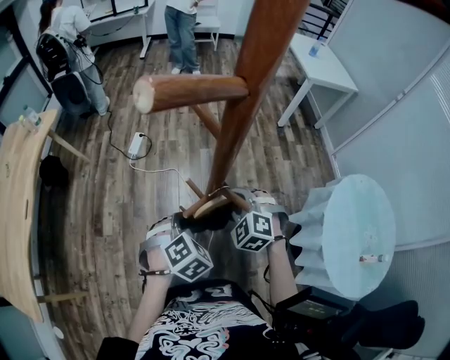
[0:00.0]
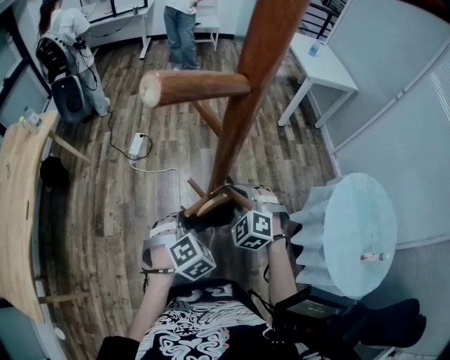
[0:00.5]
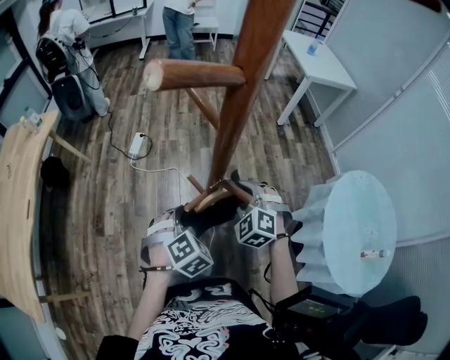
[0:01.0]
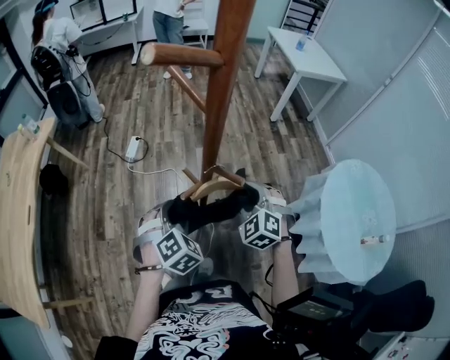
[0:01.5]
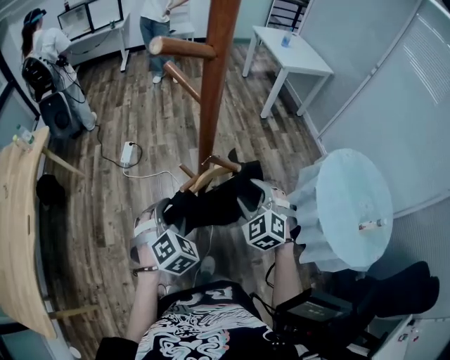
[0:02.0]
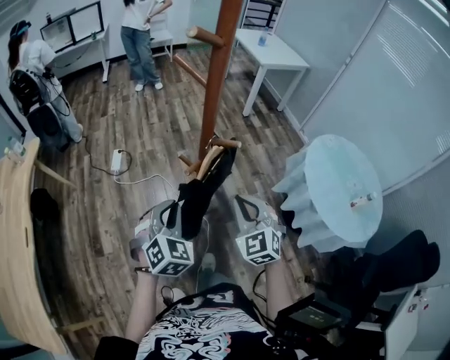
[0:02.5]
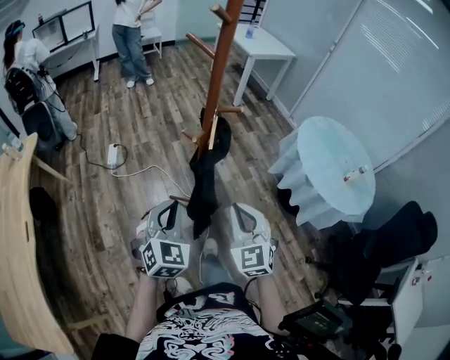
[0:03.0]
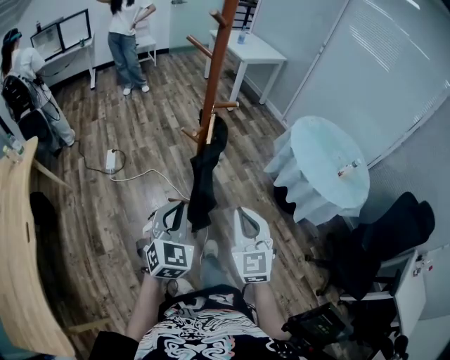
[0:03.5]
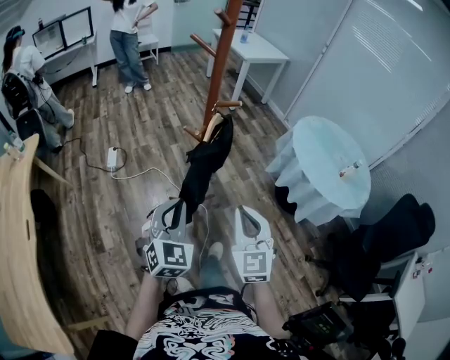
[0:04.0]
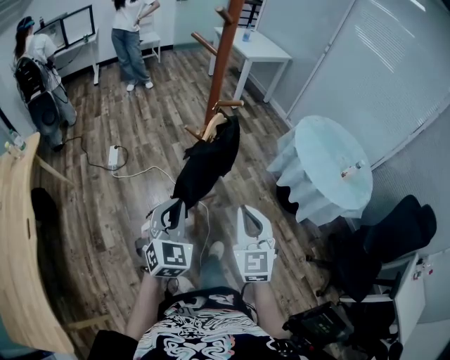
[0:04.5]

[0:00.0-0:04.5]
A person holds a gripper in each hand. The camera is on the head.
0:00.0 to 0:02.0: The right gripper goes some 10 cm backward, turns by some 20 degrees, and opens; the left gripper ends up some 5 cm from where it was, and opens.
0:02.0 to 0:04.5: The right gripper heads backward, covering approximately 30 cm, turns by roughly 40 degrees, and closes up. The left gripper heads backward, covering some 20 cm, changes its angle by approximately 40 degrees, and closes.

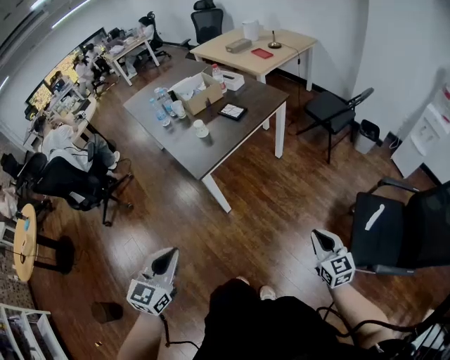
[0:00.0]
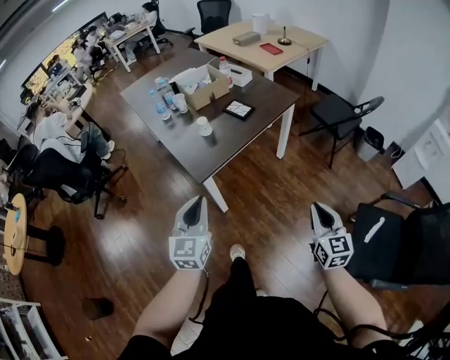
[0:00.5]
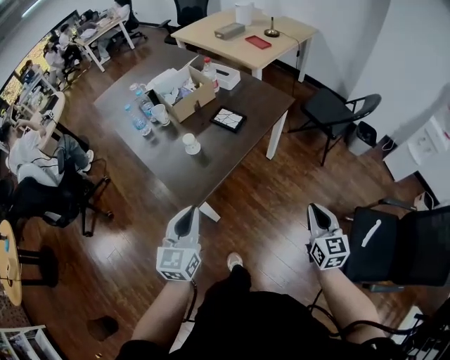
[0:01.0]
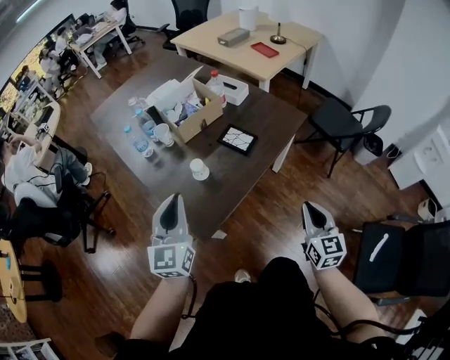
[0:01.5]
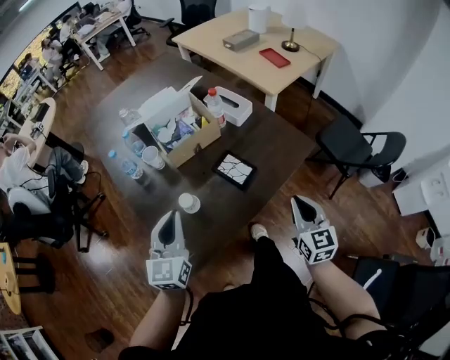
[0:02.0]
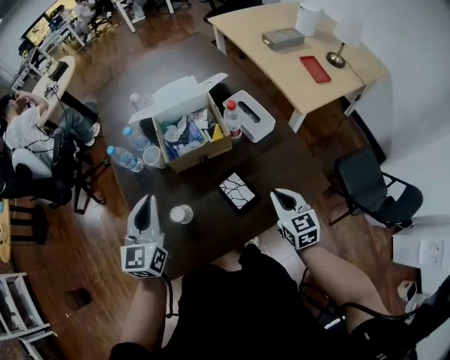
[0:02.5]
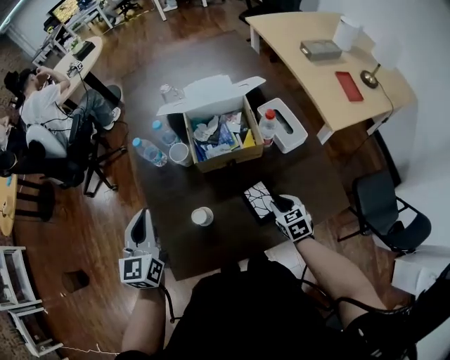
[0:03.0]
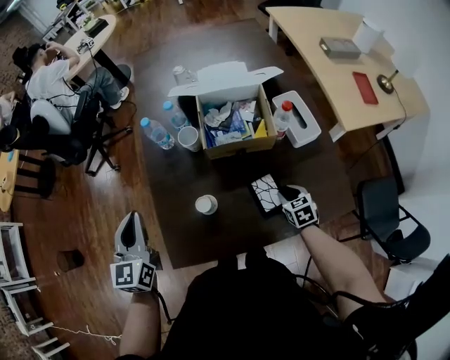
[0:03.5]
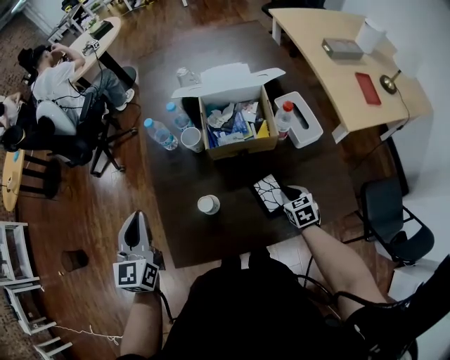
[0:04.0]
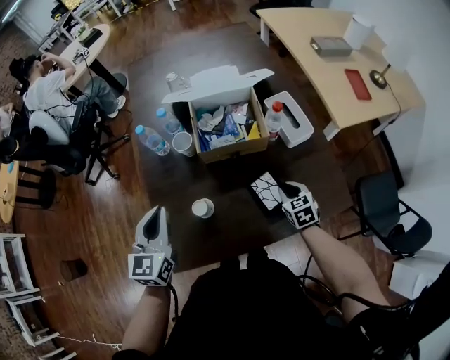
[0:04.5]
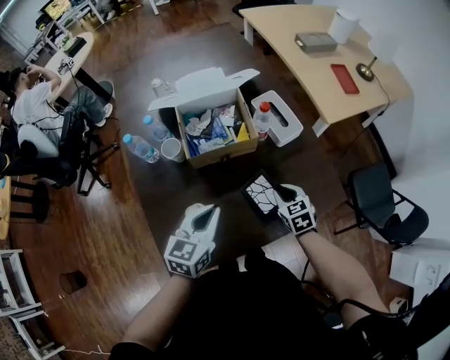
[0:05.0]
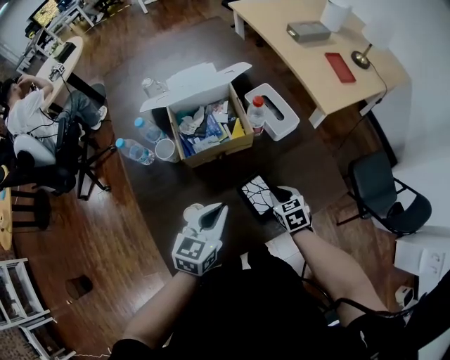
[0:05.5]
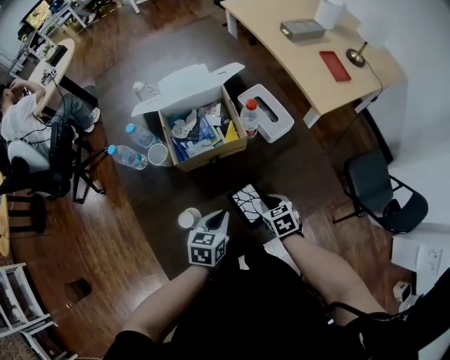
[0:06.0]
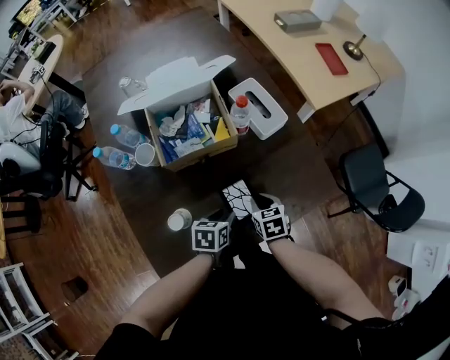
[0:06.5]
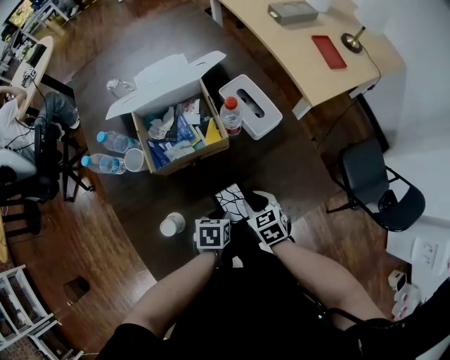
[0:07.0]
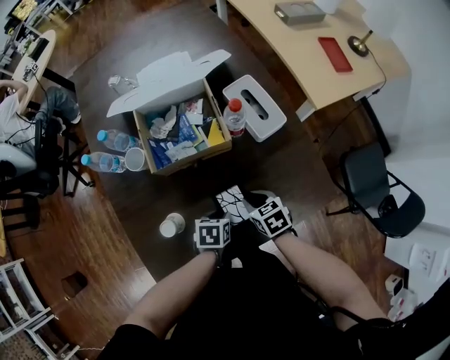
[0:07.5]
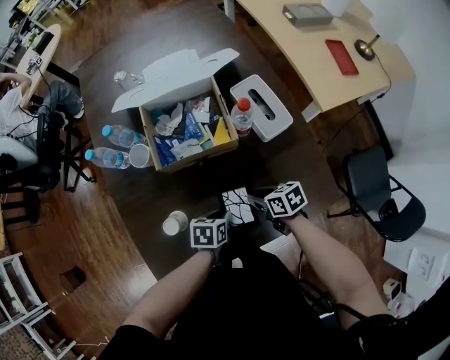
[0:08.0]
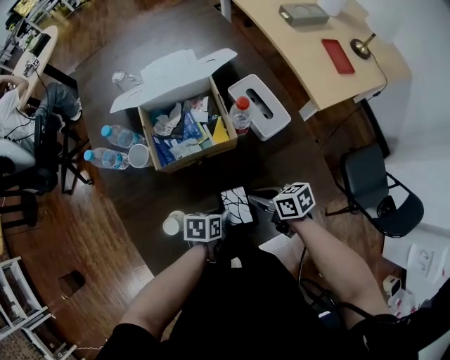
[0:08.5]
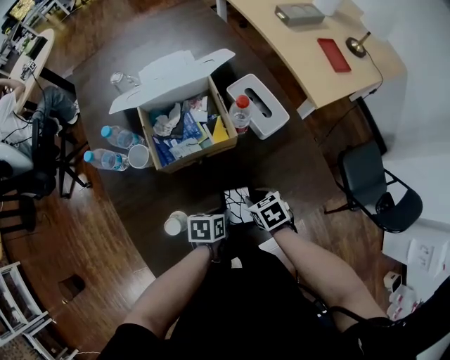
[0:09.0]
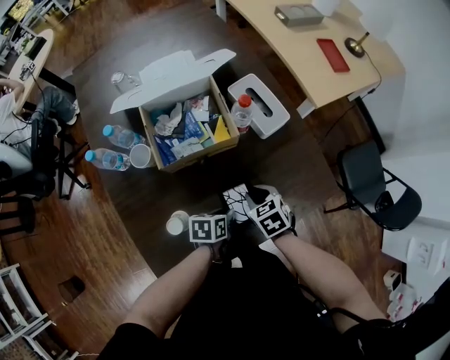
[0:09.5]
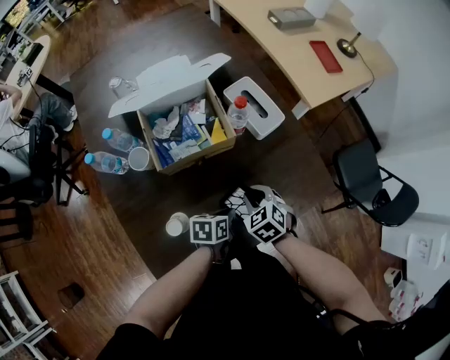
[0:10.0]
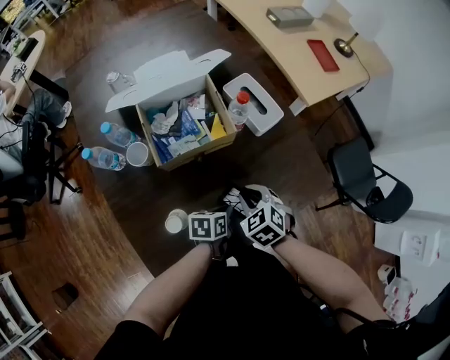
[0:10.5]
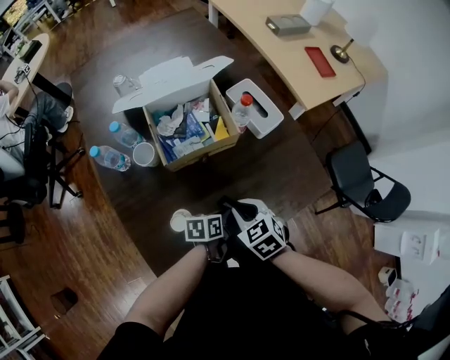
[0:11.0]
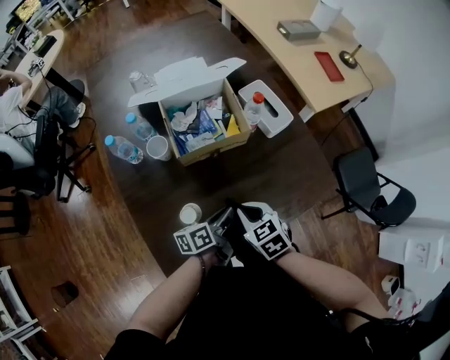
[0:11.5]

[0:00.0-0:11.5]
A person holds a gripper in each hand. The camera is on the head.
0:00.0 to 0:02.0: The pair of grippers is taken forward, about 50 cm.
0:02.0 to 0:04.0: The right gripper moves approximately 30 cm, and tilts its fingers approximately 30 degrees downward. The left gripper shifts by some 15 cm, and rotates roughly 30 degrees.
0:04.0 to 0:06.0: The left gripper changes place by about 35 cm, and rotates some 50 degrees.
0:06.0 to 0:07.5: The left gripper moves downward, some 10 cm, swivels some 30 degrees, and opens up.
0:09.5 to 0:11.5: The left gripper goes roughly 5 cm upward, and points its fingers some 30 degrees further upward. The right gripper shifts roughly 10 cm backward, upward and to the left.

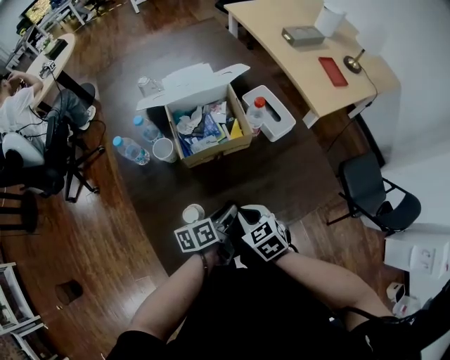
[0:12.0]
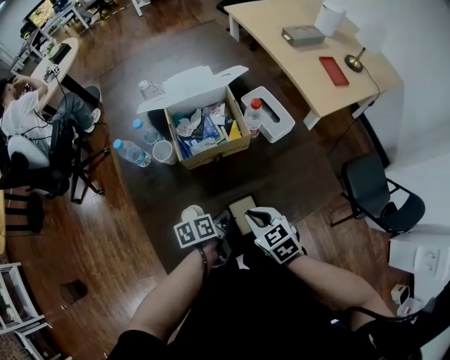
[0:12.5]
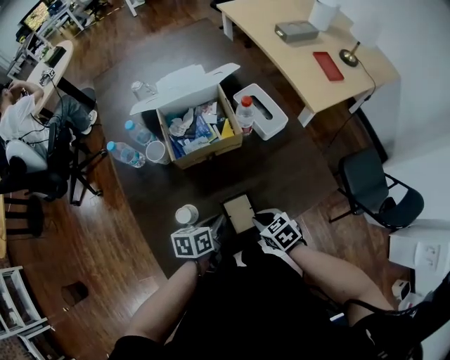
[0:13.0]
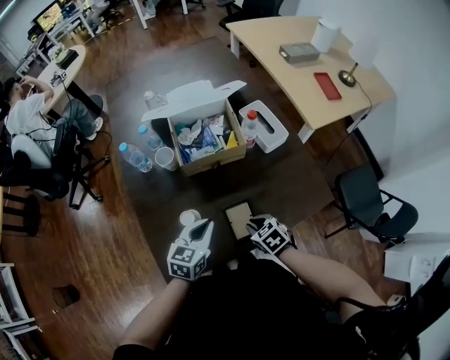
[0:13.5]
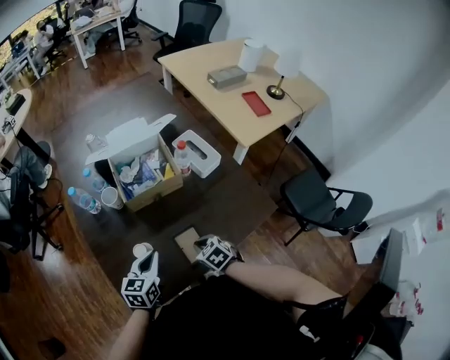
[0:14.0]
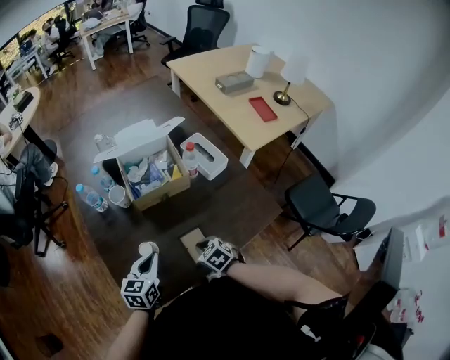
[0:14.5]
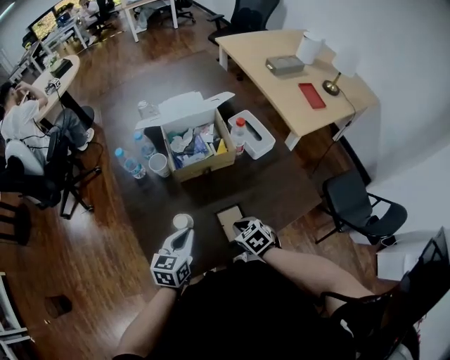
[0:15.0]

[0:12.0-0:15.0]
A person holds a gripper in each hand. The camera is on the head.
0:12.0 to 0:13.5: The right gripper goes some 10 cm downward and to the right. Meanwhile the left gripper is displaced upward by some 5 cm, rolls clockwise, seen from behind, by approximately 50 degrees, and closes up.
0:13.5 to 0:15.0: The grippers make only small movements.

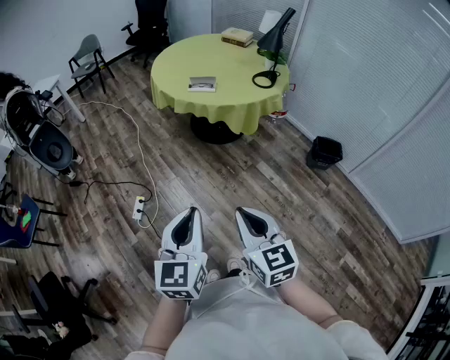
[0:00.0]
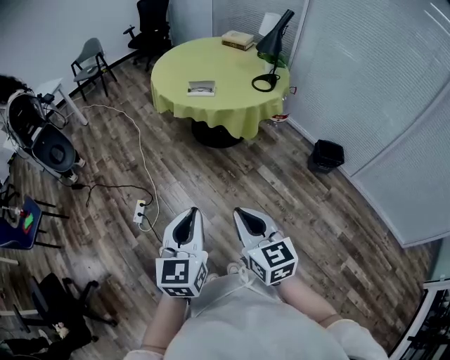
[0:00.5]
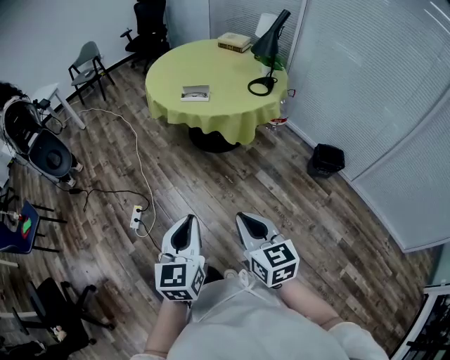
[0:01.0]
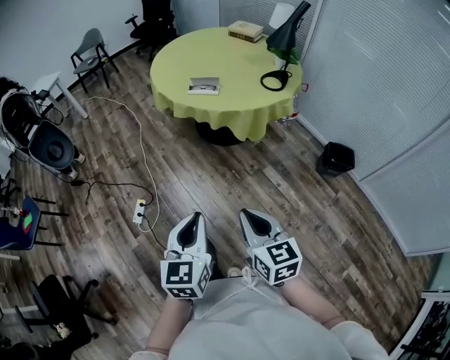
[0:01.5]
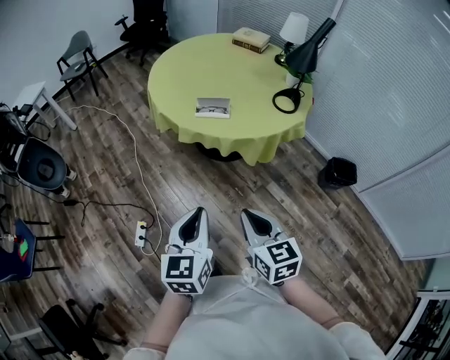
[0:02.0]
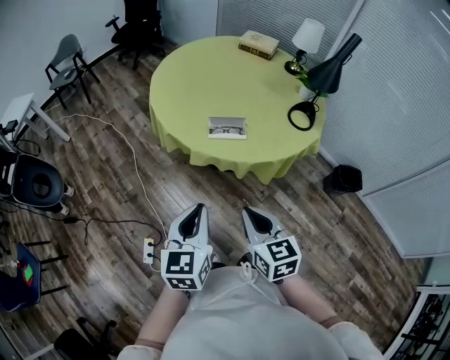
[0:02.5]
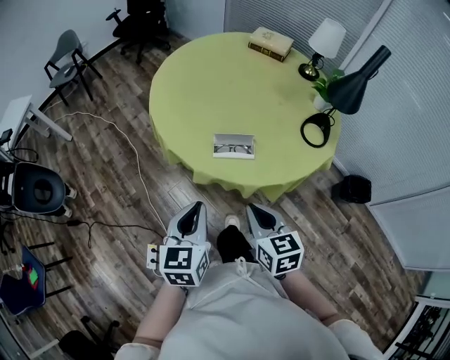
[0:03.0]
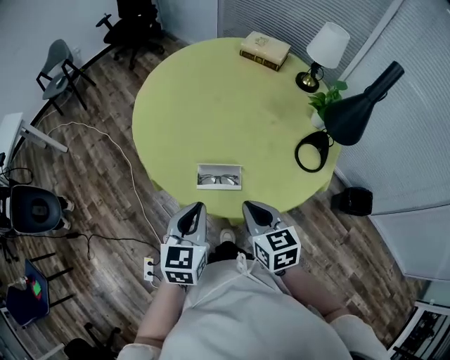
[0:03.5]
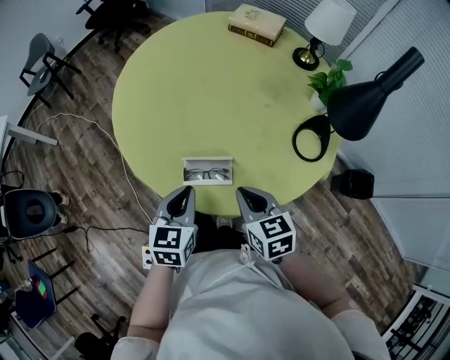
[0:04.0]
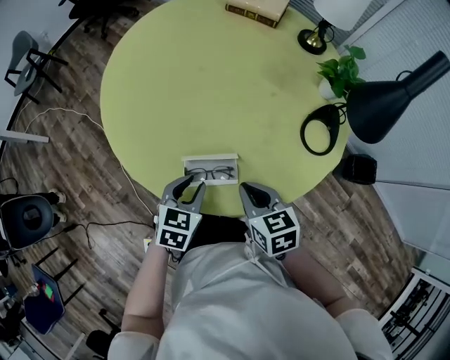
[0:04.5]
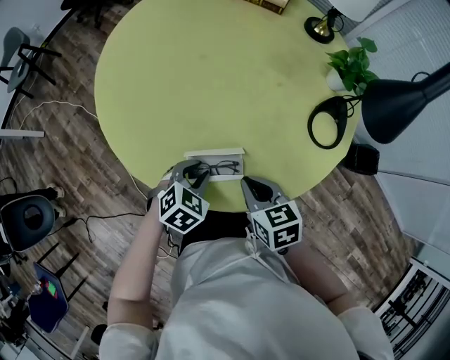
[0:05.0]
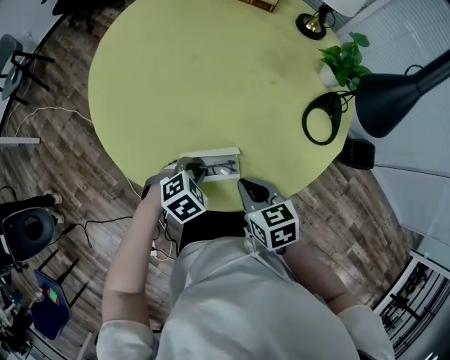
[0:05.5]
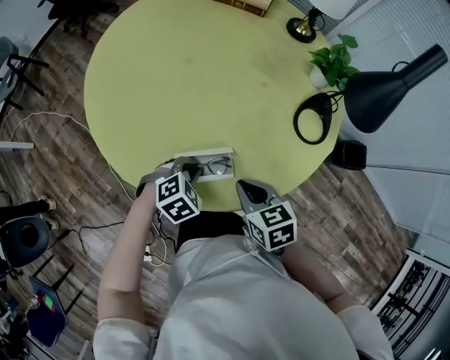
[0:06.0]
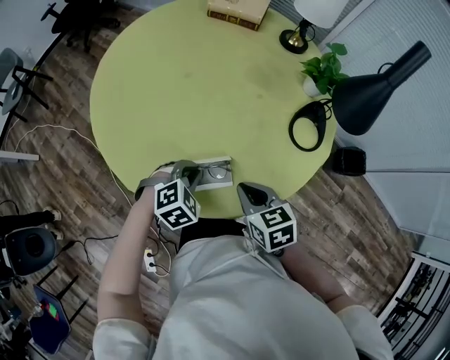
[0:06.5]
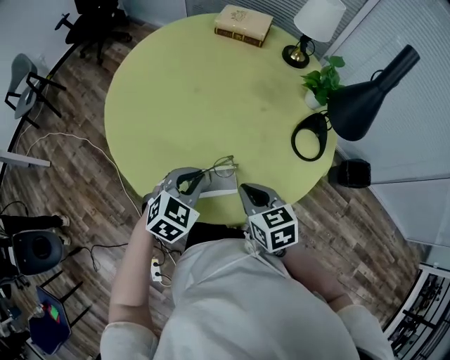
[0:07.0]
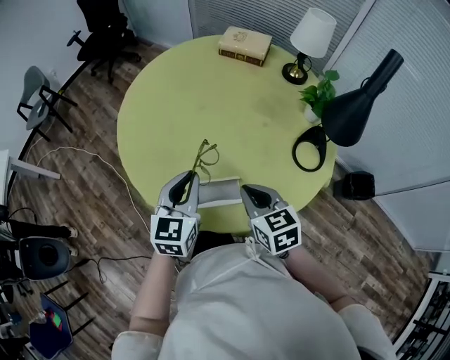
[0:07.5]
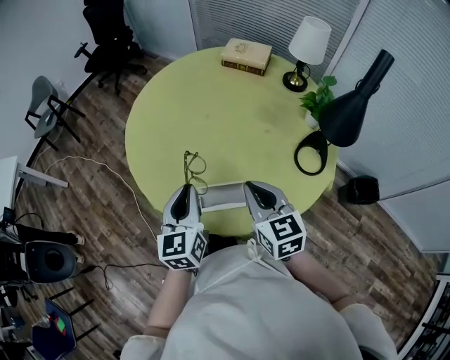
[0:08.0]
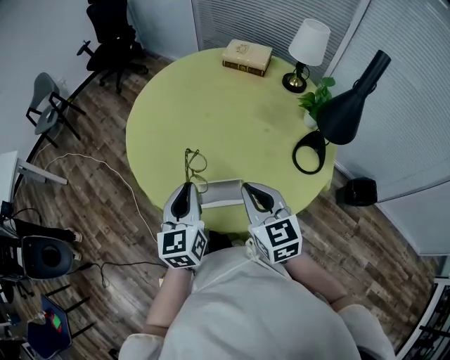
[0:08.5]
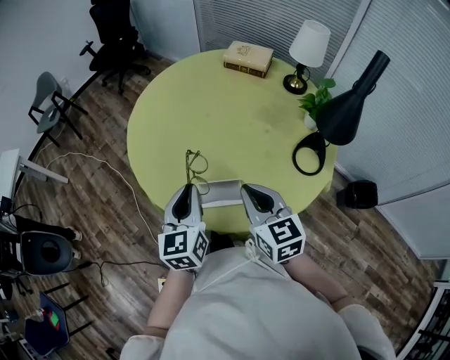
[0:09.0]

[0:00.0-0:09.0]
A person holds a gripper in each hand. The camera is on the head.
0:00.0 to 0:02.0: The two grippers go roughly 30 cm forward.
0:02.0 to 0:04.5: The pair of grippers is taken forward, about 50 cm. The left gripper changes its angle by approximately 40 degrees, and opens.
0:04.5 to 0:07.0: The left gripper moves upward, some 5 cm, swivels roughly 30 degrees, and closes up.
0:07.0 to 0:09.0: The left gripper travels upward and to the left by about 10 cm, and turns by roughly 60 degrees, while the right gripper travels upward by roughly 10 cm, and swivels about 20 degrees.
